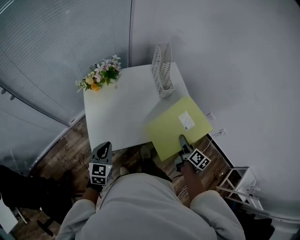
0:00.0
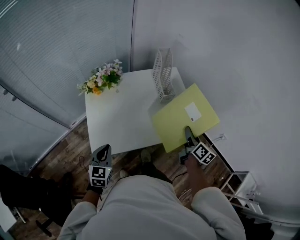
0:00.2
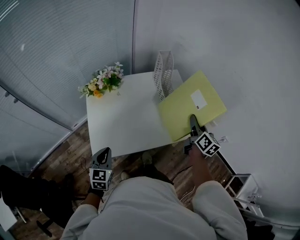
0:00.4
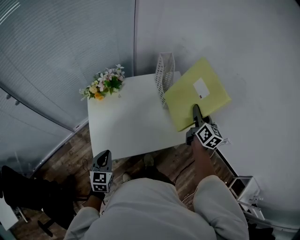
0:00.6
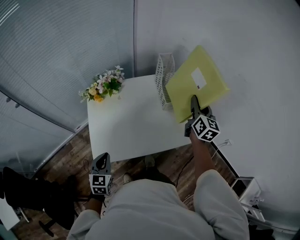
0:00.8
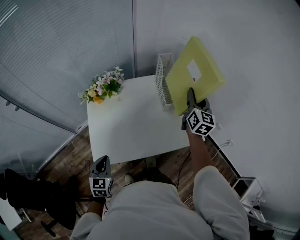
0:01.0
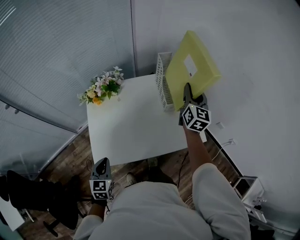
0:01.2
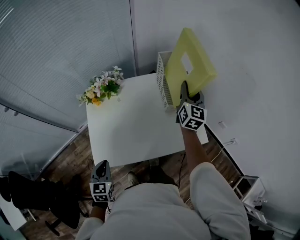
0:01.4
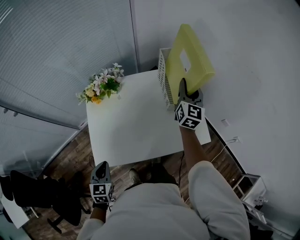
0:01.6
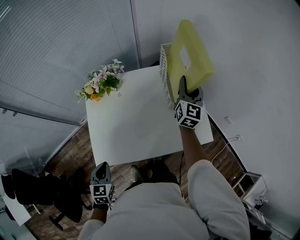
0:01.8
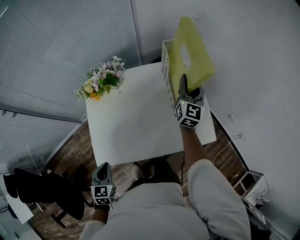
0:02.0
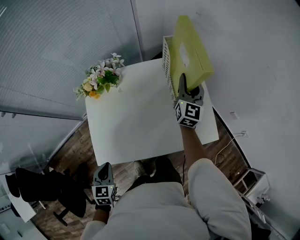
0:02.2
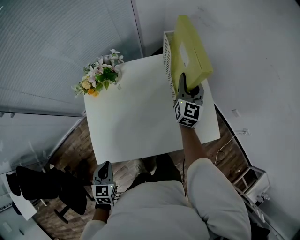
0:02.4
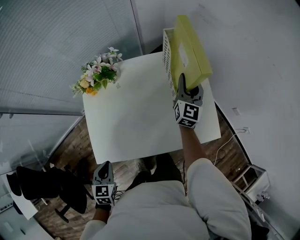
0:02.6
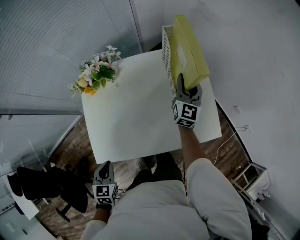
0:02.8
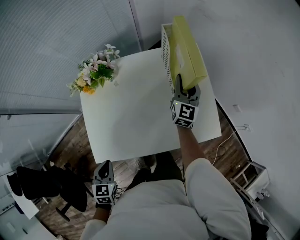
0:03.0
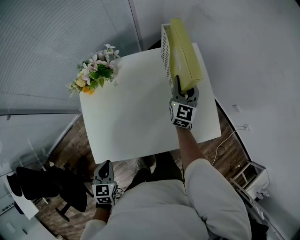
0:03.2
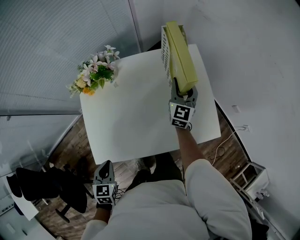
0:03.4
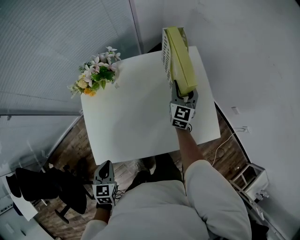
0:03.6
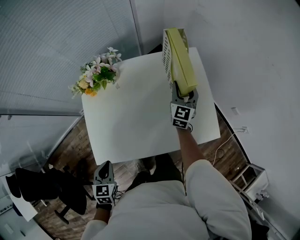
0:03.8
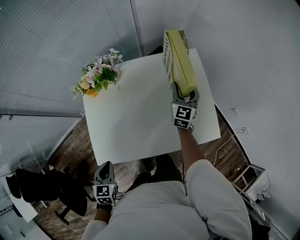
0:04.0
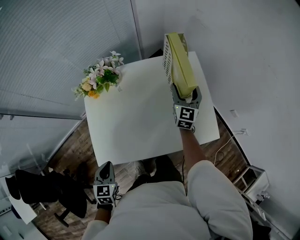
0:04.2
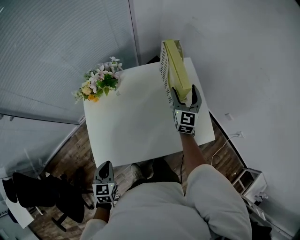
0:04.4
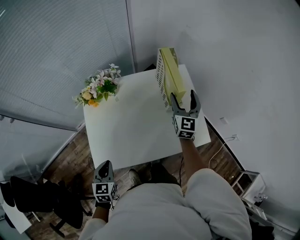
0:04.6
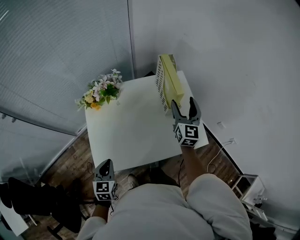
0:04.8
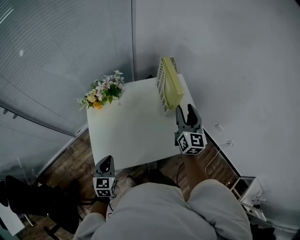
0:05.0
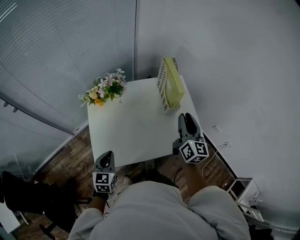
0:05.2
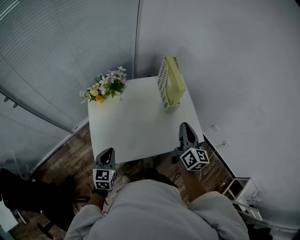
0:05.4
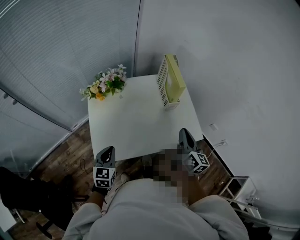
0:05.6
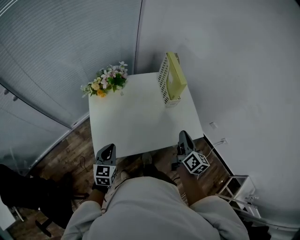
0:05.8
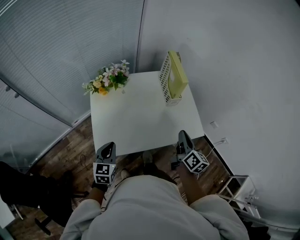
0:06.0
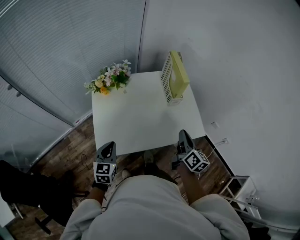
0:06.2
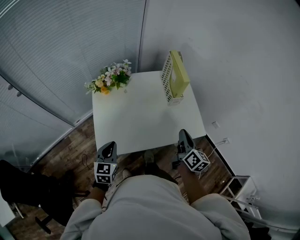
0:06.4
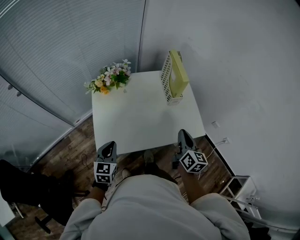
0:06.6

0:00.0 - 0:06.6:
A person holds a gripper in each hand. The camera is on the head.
0:00.0 - 0:01.6: The right gripper moves forward and upward, approximately 35 cm, and twists some 40 degrees counterclockwise, seen from behind.
0:01.6 - 0:03.2: The right gripper is displaced downward by some 15 cm. Meanwhile the left gripper is displaced downward by roughly 5 cm.
0:03.2 - 0:05.0: The left gripper shifts approximately 5 cm upward, while the right gripper is displaced upward and backward by some 20 cm, and opens, then closes again.
0:05.0 - 0:06.6: The right gripper moves backward, roughly 20 cm, swivels approximately 20 degrees, and closes its fingers.

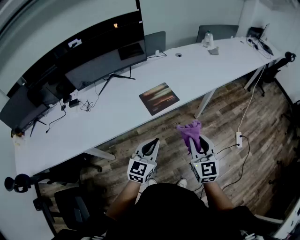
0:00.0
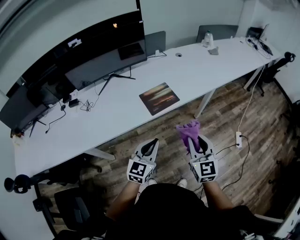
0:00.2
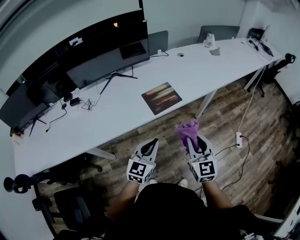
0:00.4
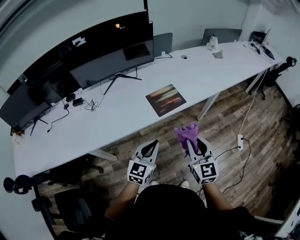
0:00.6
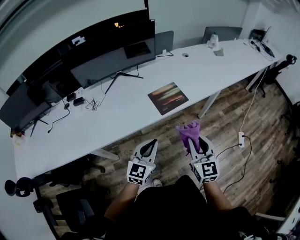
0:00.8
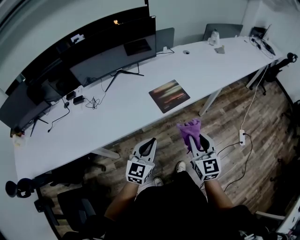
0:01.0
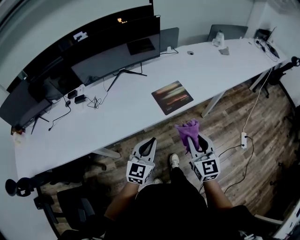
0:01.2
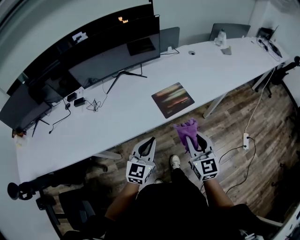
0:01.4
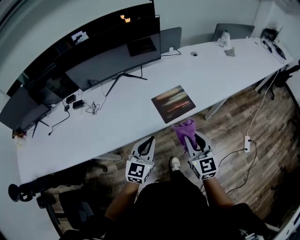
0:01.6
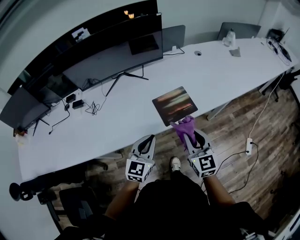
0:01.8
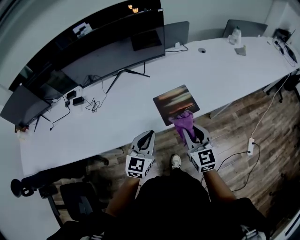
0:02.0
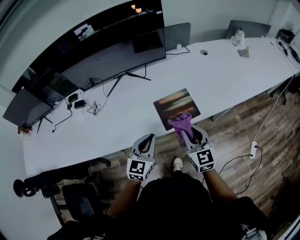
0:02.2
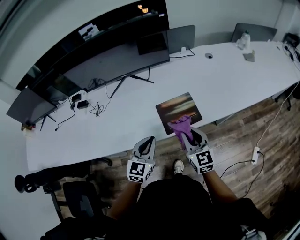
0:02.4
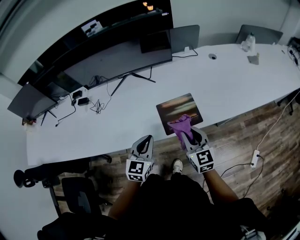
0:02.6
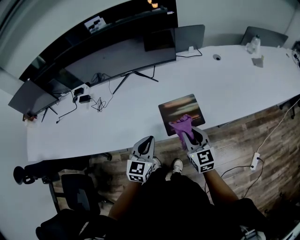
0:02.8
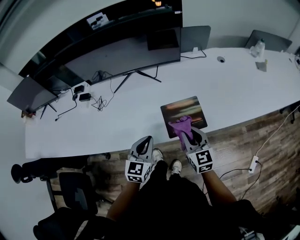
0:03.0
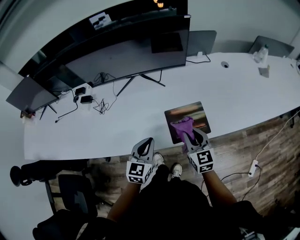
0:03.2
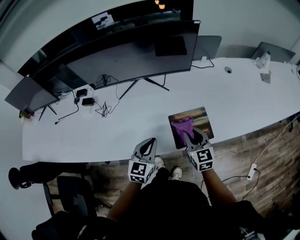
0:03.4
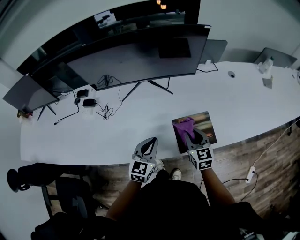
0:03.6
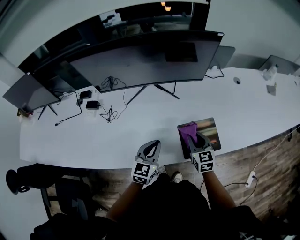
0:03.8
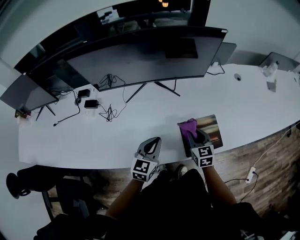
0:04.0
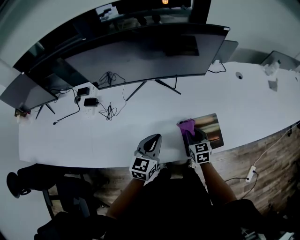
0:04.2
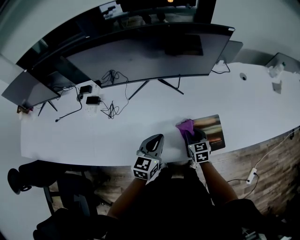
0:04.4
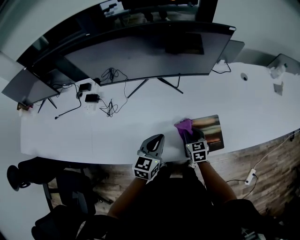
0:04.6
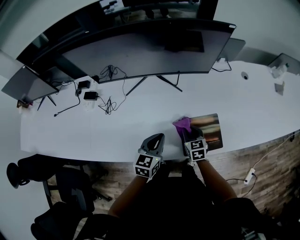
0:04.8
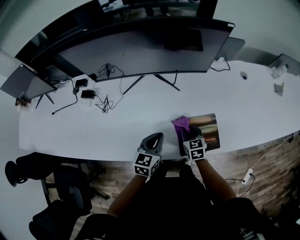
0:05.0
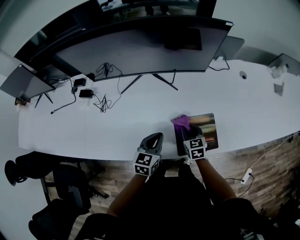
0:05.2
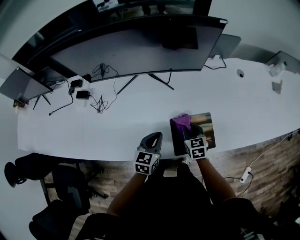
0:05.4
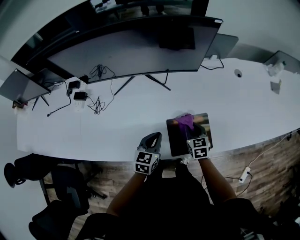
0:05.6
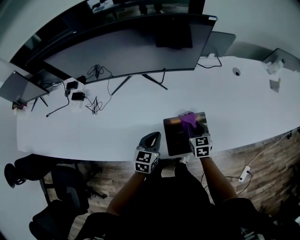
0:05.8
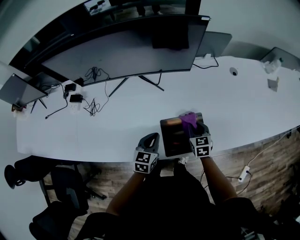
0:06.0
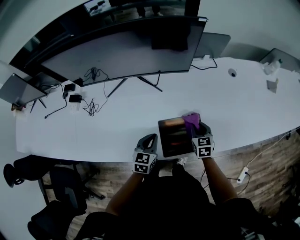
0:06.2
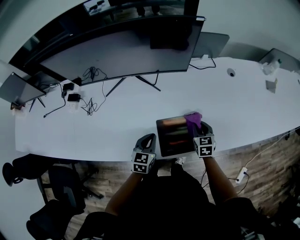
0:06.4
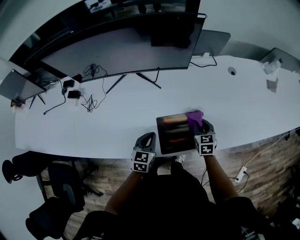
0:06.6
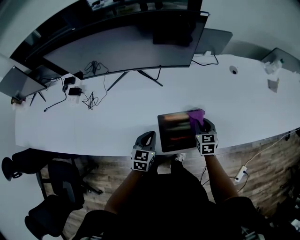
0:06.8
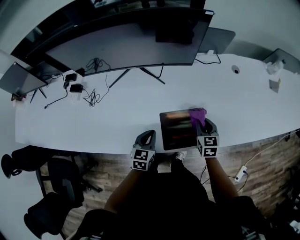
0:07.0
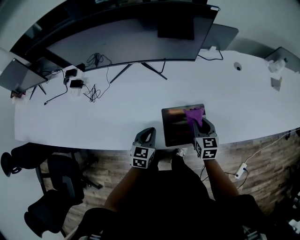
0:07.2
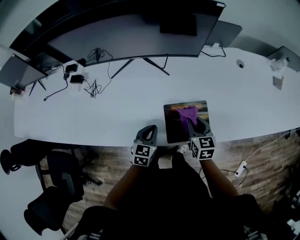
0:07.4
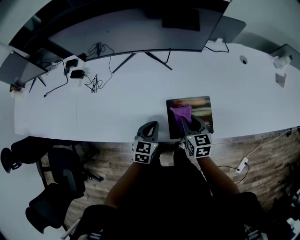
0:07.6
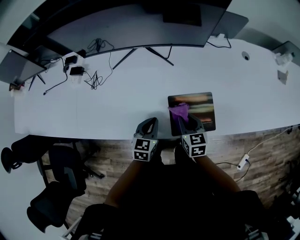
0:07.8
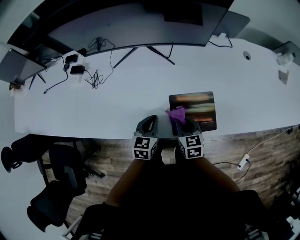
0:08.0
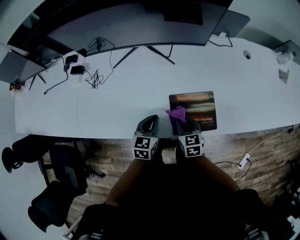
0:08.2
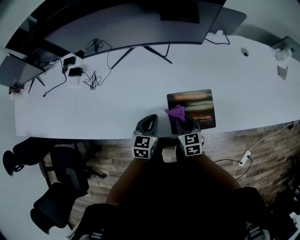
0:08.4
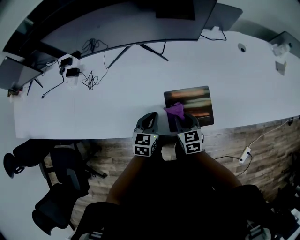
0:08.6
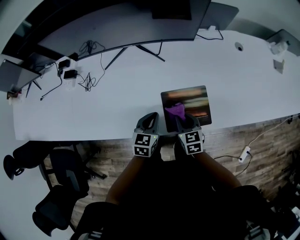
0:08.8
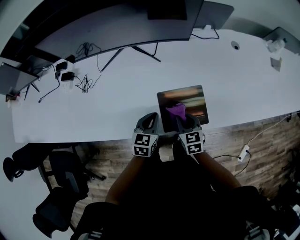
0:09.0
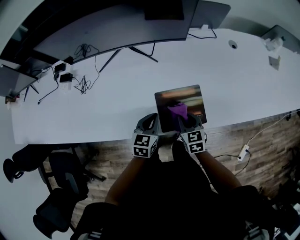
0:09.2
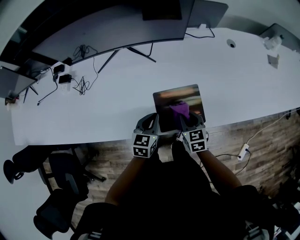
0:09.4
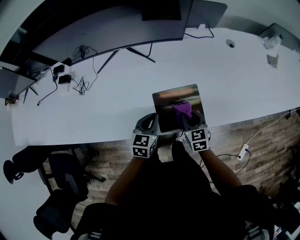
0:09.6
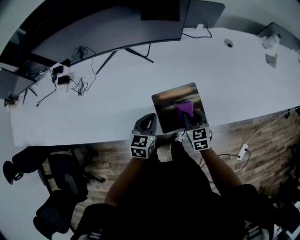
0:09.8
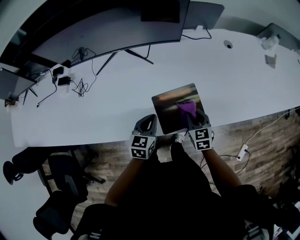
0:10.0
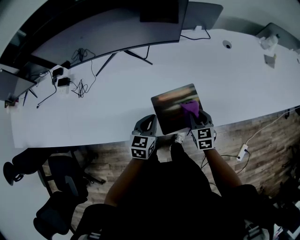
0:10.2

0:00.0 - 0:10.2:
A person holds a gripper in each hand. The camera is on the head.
0:00.0 - 0:01.4: Both grippers move to the left, some 10 cm.
0:01.4 - 0:03.0: The two grippers go some 15 cm forward. The right gripper rotates approximately 20 degrees, while the left gripper turns by some 20 degrees.
0:03.0 - 0:04.4: The left gripper goes roughly 10 cm forward and to the left; the right gripper moves downward, forward and to the left, approximately 20 cm.
0:04.4 - 0:05.8: The right gripper heads to the right, covering approximately 10 cm; the left gripper moves to the right and downward, about 10 cm.
0:05.8 - 0:07.2: The right gripper ends up some 5 cm from where it was.
0:07.2 - 0:08.8: The right gripper goes roughly 10 cm to the left and backward.
0:08.8 - 0:10.2: The right gripper travels to the right by roughly 10 cm.

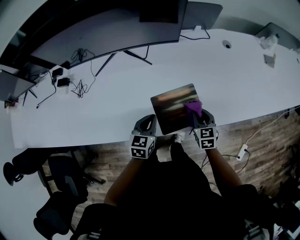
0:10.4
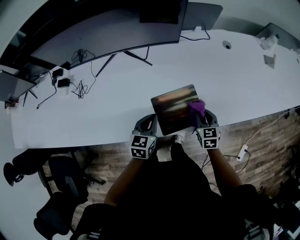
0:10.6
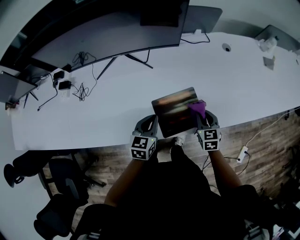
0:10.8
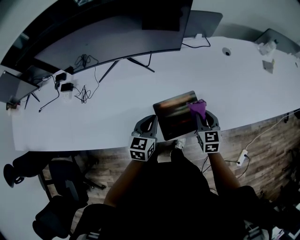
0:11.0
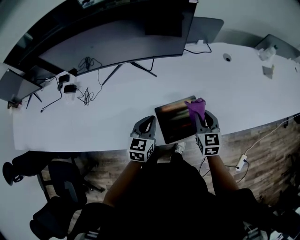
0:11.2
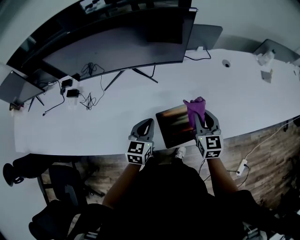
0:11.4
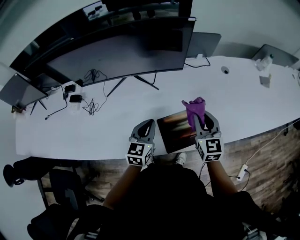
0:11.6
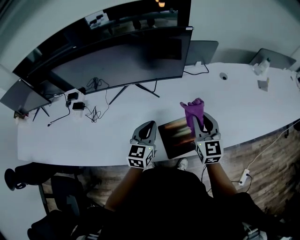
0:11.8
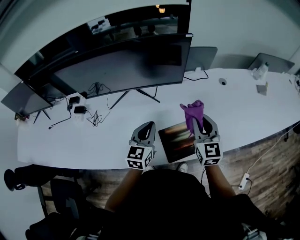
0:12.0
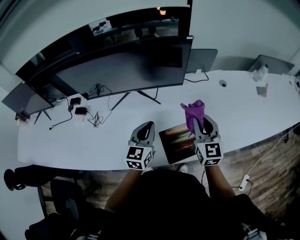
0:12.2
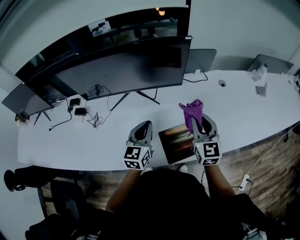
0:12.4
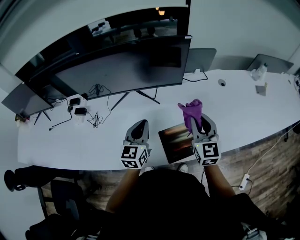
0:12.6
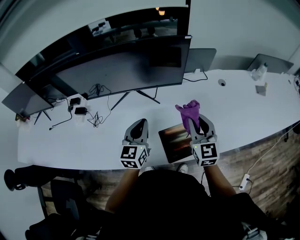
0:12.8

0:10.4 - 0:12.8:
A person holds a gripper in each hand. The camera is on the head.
0:10.4 - 0:11.6: The left gripper moves upward and forward, some 10 cm. The right gripper travels upward by some 20 cm, and changes its angle by some 20 degrees.
0:11.6 - 0:12.8: Both grippers move upward, some 5 cm.

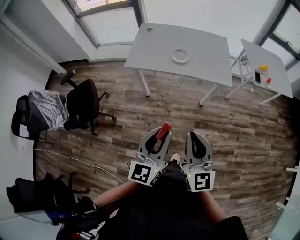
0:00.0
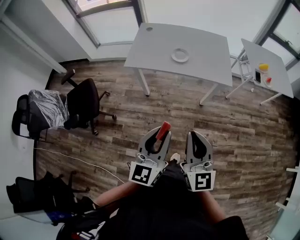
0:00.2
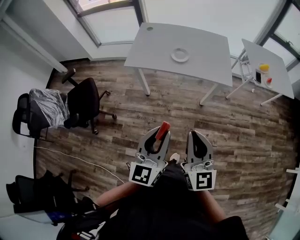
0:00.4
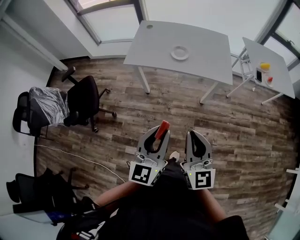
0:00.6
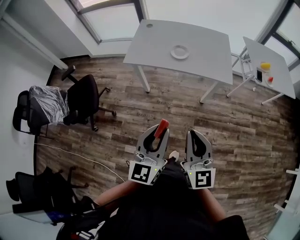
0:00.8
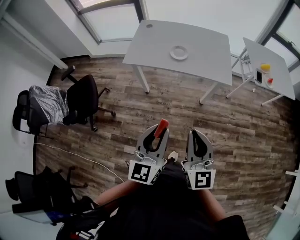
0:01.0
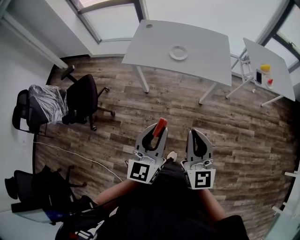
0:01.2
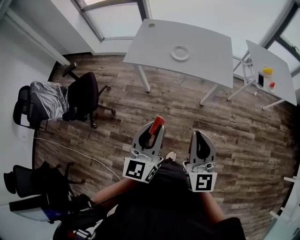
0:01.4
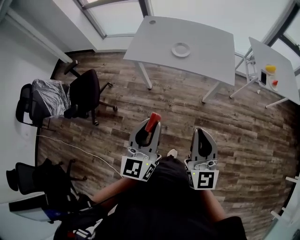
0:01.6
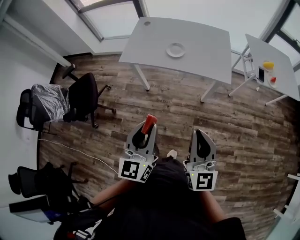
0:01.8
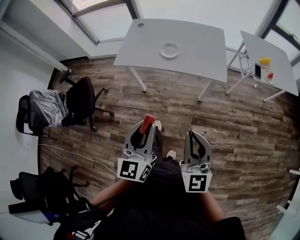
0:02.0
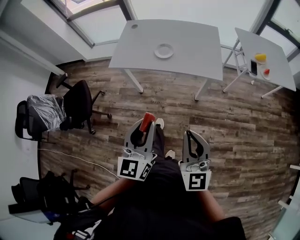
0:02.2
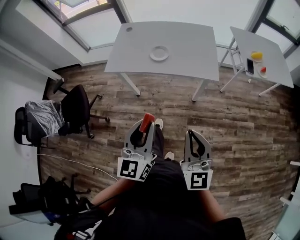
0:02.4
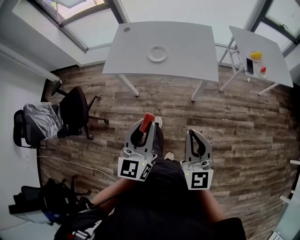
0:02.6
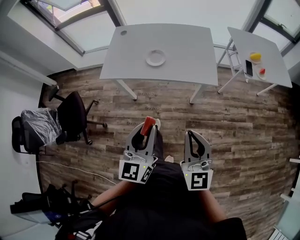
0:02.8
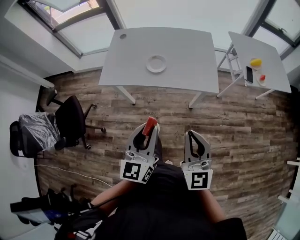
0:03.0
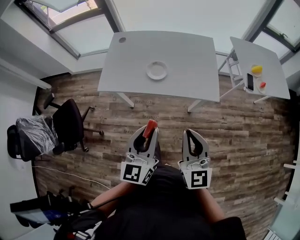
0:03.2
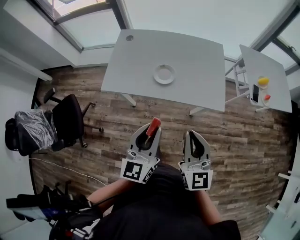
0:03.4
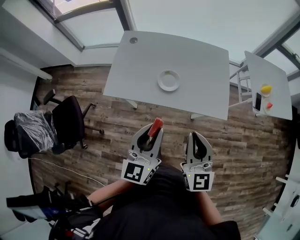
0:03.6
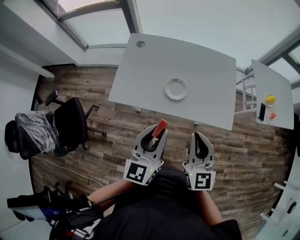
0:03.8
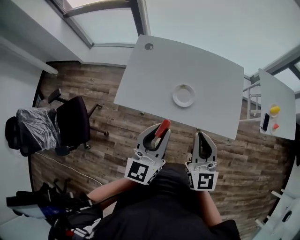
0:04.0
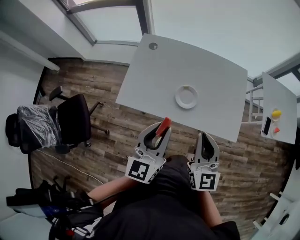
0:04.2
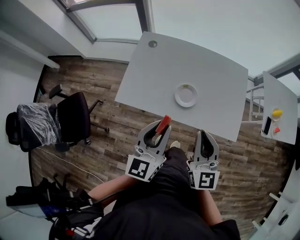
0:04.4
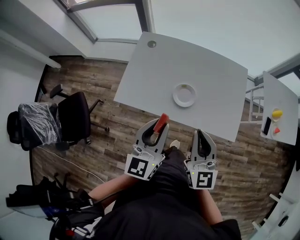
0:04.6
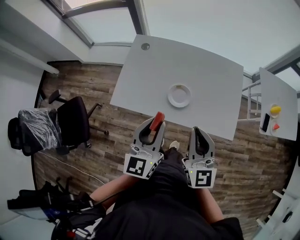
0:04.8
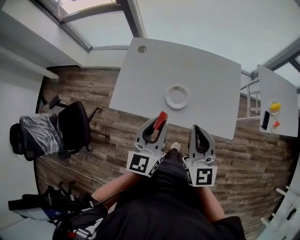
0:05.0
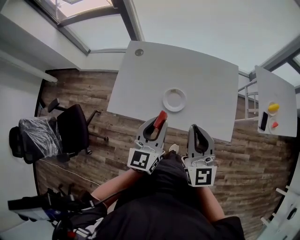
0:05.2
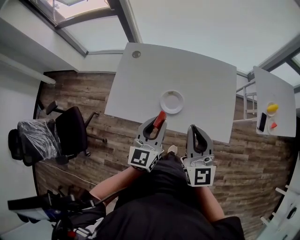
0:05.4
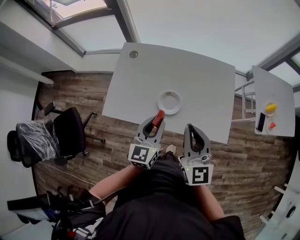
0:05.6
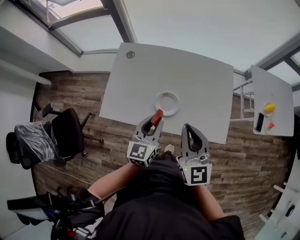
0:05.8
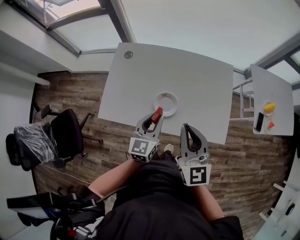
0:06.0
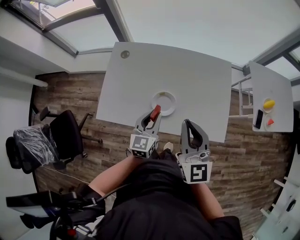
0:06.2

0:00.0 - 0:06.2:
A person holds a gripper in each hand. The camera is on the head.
0:00.0 - 0:01.6: The right gripper travels to the right by about 10 cm.
0:01.6 - 0:03.2: Both grippers travel together forward, about 20 cm.
0:03.2 - 0:04.6: Both grippers move forward and to the left, approximately 25 cm.
0:04.6 - 0:06.2: The right gripper travels forward by approximately 10 cm. Meanwhile the left gripper moves downward, forward and to the right, roughly 20 cm.
